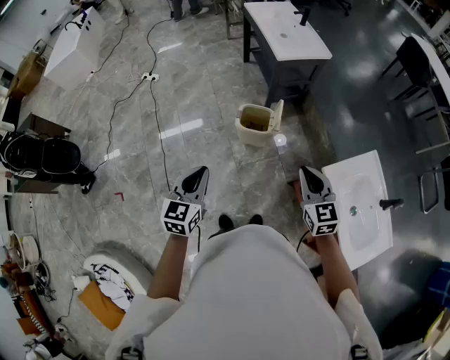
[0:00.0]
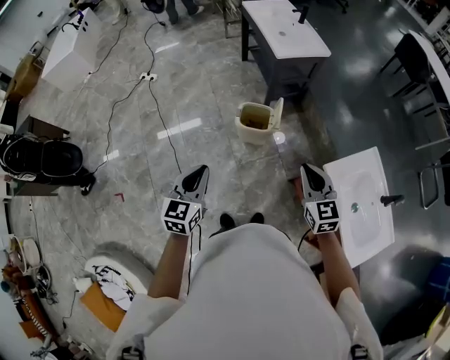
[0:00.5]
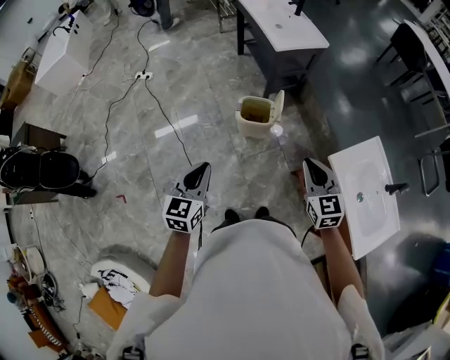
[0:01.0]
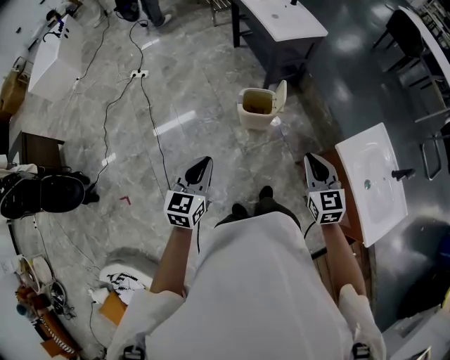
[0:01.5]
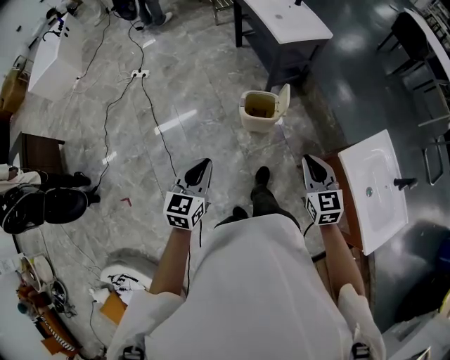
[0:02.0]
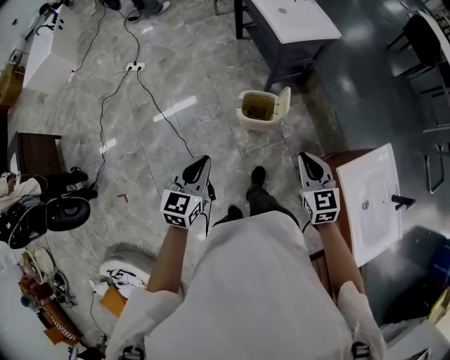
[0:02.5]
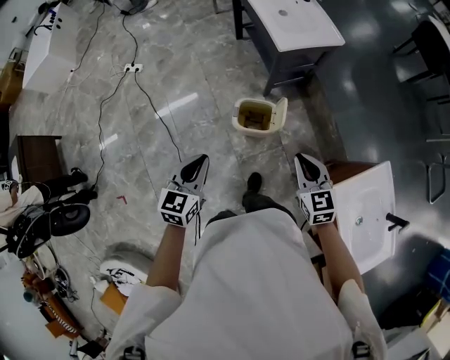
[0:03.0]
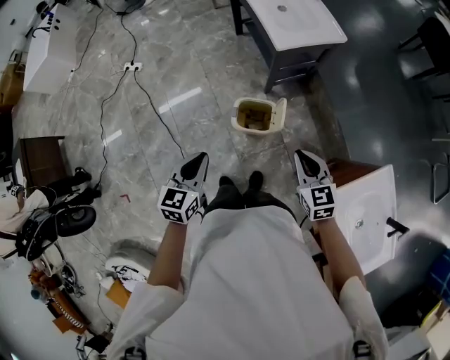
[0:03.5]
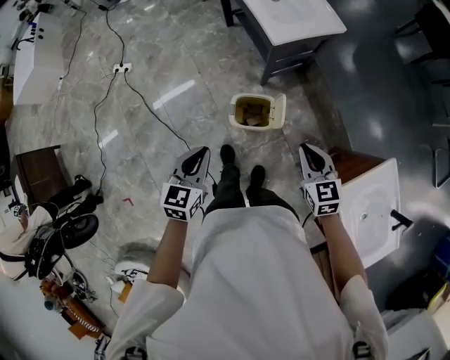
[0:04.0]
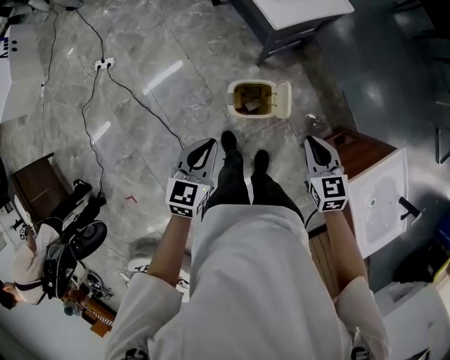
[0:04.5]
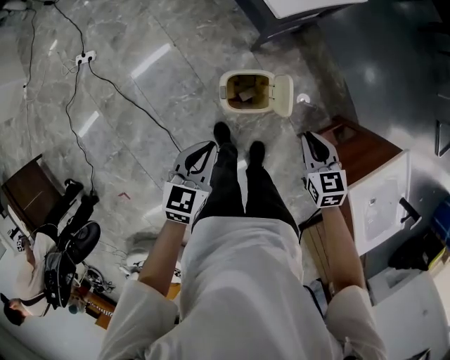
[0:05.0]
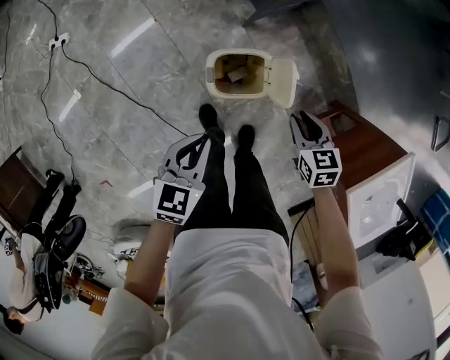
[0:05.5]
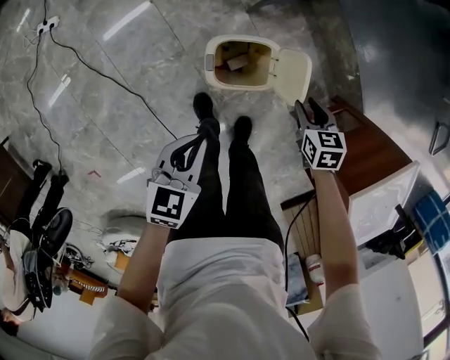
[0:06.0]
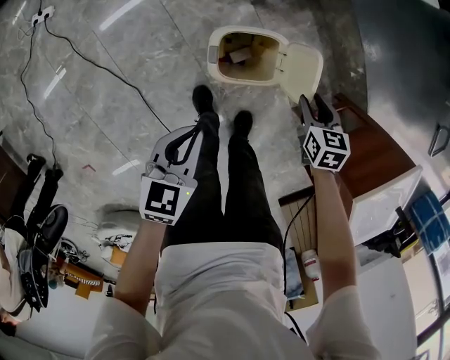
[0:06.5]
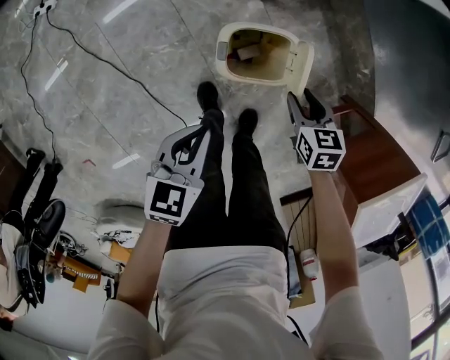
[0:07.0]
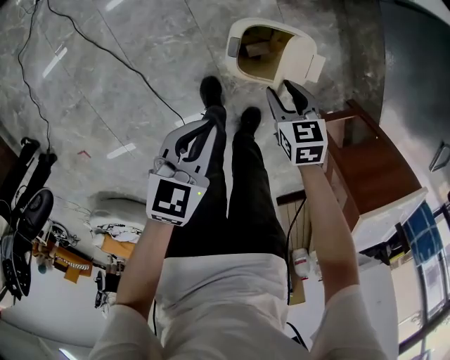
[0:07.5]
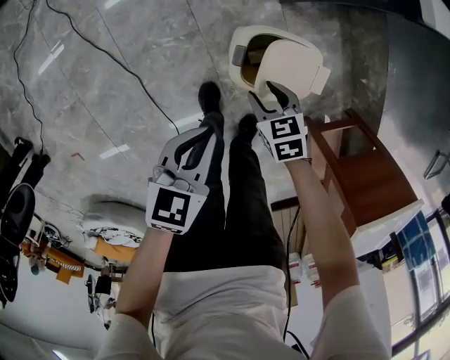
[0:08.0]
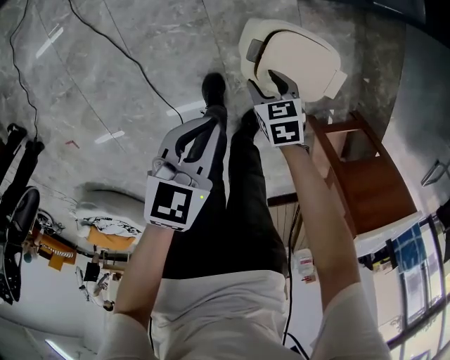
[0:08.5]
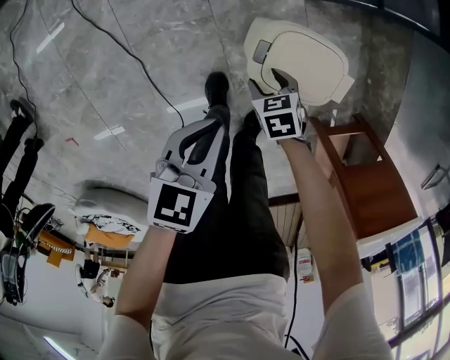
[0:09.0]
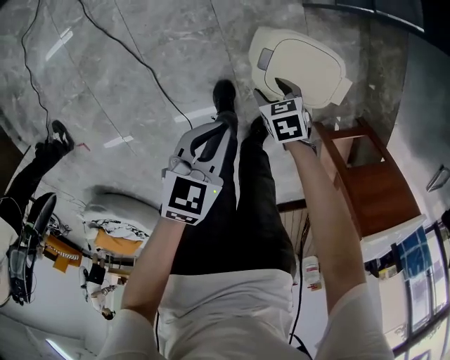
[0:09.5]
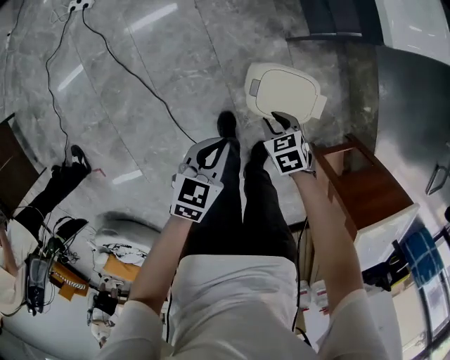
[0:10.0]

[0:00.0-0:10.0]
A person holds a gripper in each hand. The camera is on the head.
0:00.0 to 0:02.0: The grippers both shift to the left by about 5 cm.
0:02.0 to 0:04.0: Both grippers move forward, approximately 25 cm.
0:04.0 to 0:06.0: The two grippers go roughly 30 cm downward. The left gripper swivels about 20 degrees, while the right gripper rotates approximately 30 degrees, and opens its fingers.
0:06.0 to 0:08.0: The left gripper heads downward, covering about 10 cm; the right gripper moves to the left and downward, some 25 cm, and swivels some 20 degrees.
0:08.0 to 0:10.0: The right gripper goes roughly 5 cm upward.

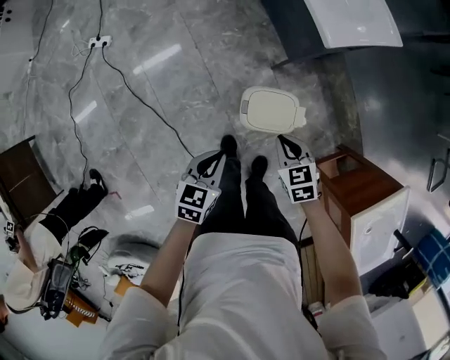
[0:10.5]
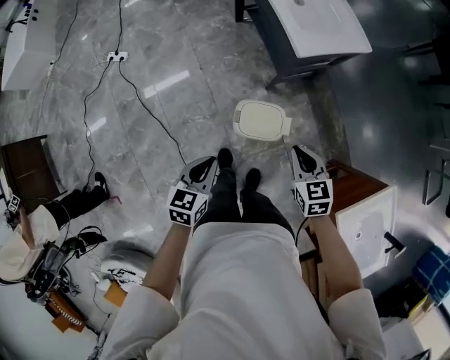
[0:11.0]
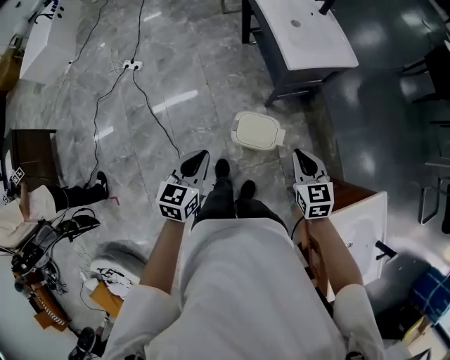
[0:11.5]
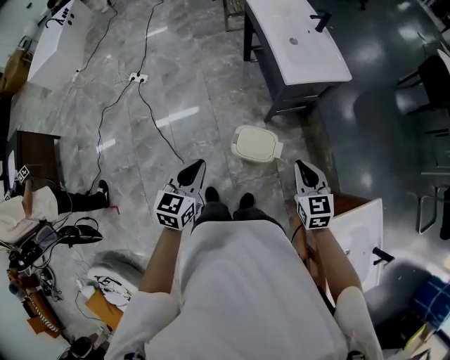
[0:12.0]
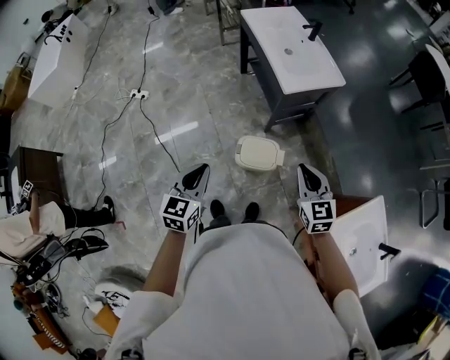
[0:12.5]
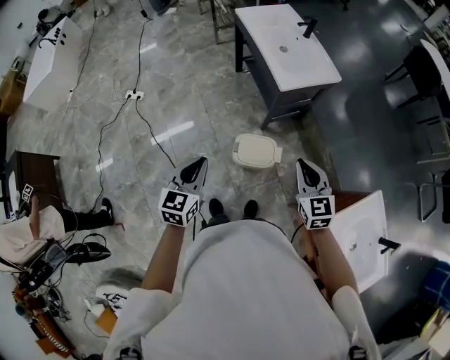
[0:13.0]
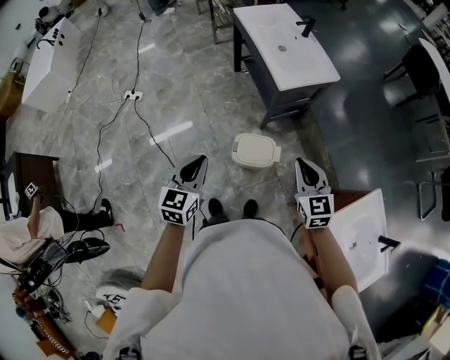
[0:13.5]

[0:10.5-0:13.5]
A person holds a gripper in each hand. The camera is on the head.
0:10.5 to 0:12.0: The right gripper shifts roughly 30 cm upward and to the right, and rotates approximately 20 degrees; the left gripper travels upward by roughly 20 cm, and rotates some 20 degrees.
0:12.0 to 0:13.5: The right gripper changes place by about 5 cm.

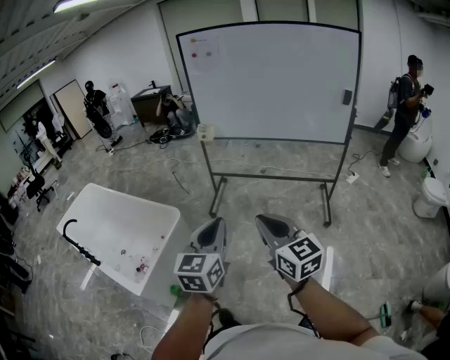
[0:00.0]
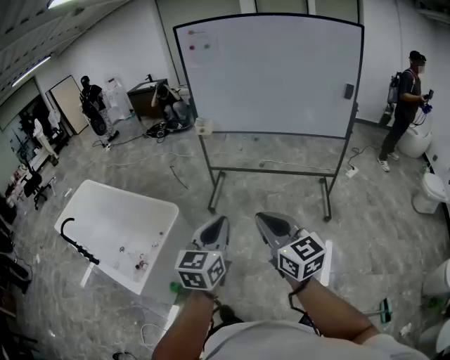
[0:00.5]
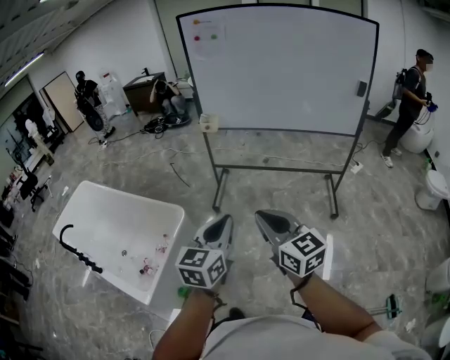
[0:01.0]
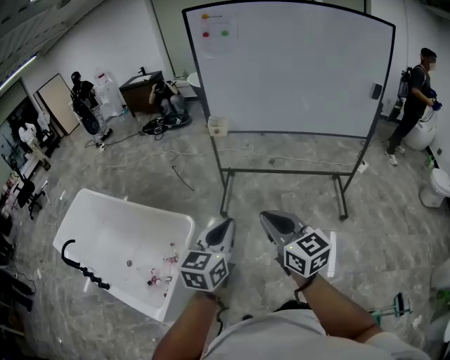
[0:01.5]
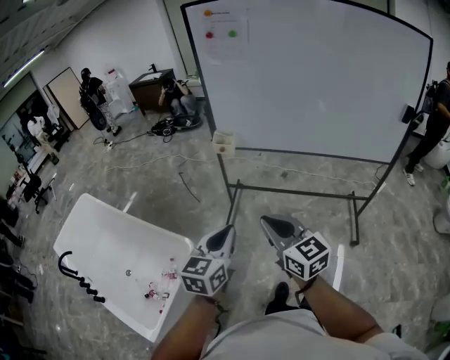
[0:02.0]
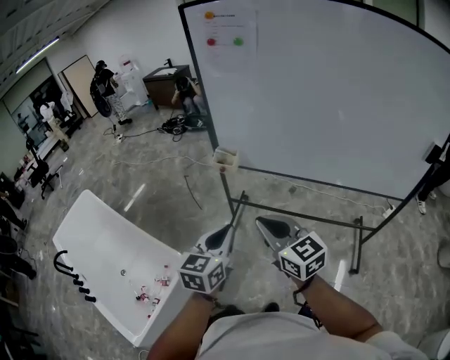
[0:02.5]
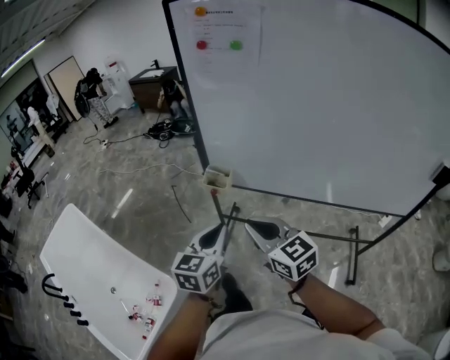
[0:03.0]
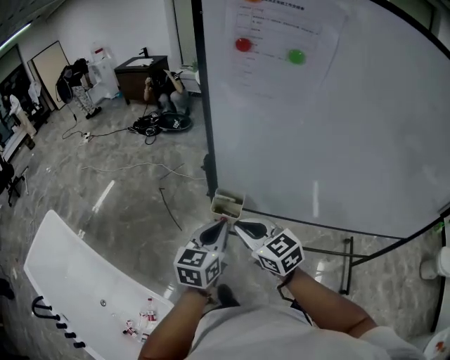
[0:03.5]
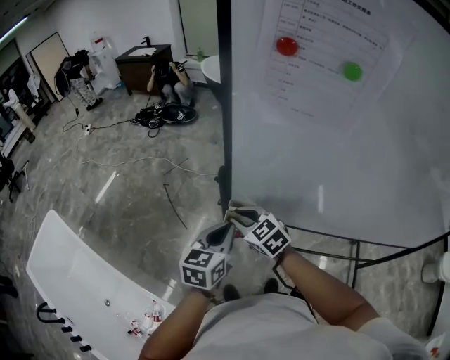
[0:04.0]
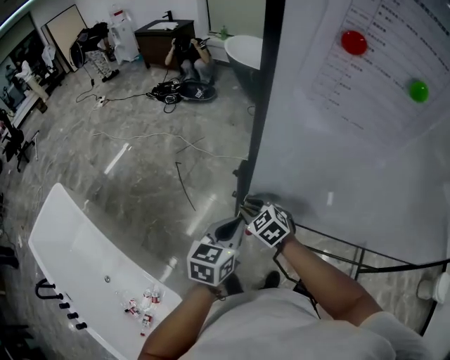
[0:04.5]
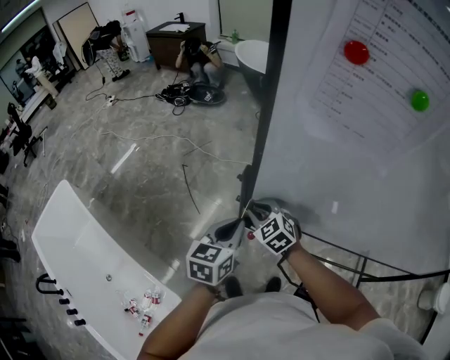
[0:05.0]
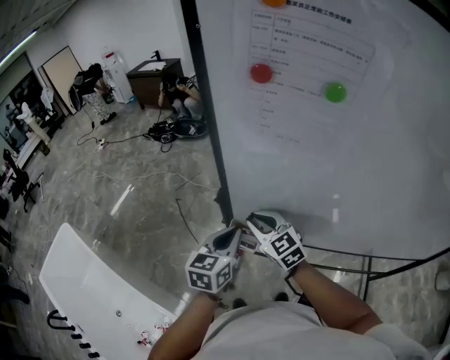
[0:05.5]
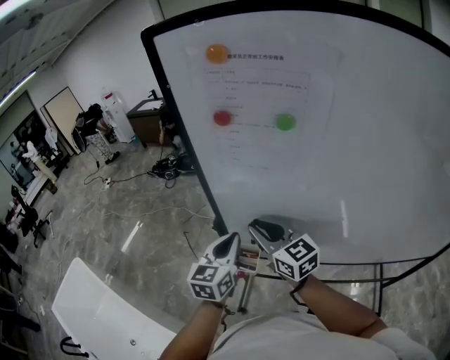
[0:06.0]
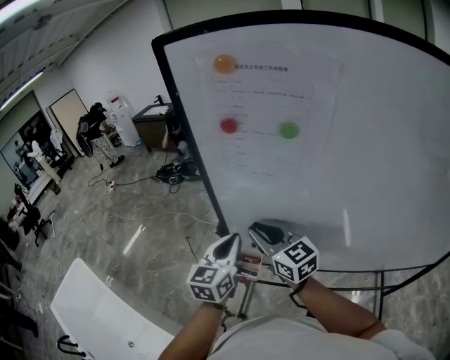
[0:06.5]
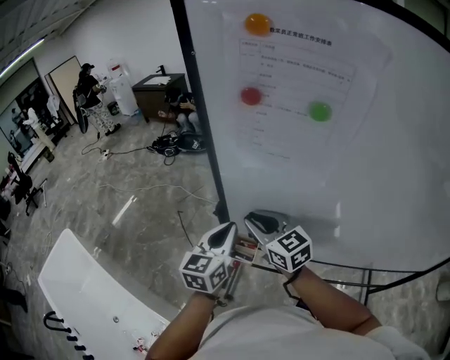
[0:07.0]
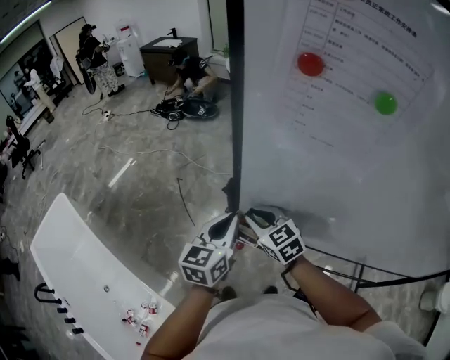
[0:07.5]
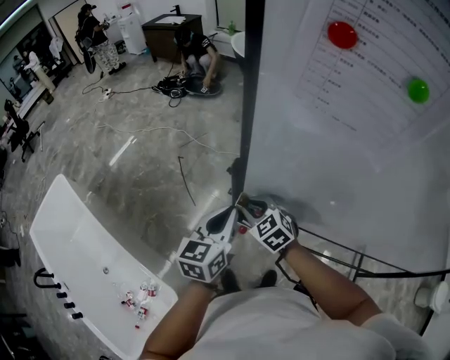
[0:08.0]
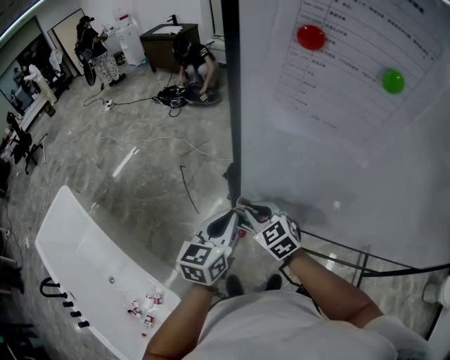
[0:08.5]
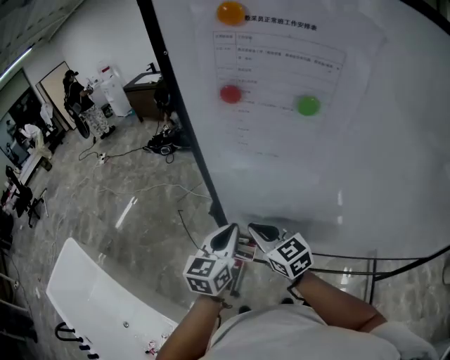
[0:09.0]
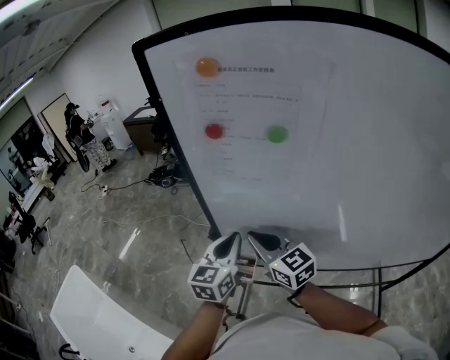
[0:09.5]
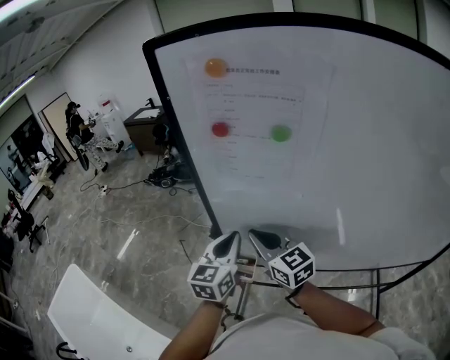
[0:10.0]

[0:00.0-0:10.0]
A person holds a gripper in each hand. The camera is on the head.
0:00.0 to 0:02.0: The two grippers travel together, forward, approximately 40 cm.
0:02.0 to 0:04.0: The pair of grippers is taken forward, roughly 60 cm. The right gripper turns by approximately 30 degrees.
0:04.0 to 0:06.0: The right gripper travels upward and to the right by approximately 20 cm, and changes its angle by roughly 30 degrees; the left gripper goes approximately 10 cm upward, to the right and forward.
0:06.0 to 0:08.0: The left gripper is displaced downward and to the left by about 10 cm, while the right gripper heads downward, covering roughly 20 cm, and angles its fingers downward, by approximately 40 degrees.
0:08.0 to 0:10.0: The right gripper moves upward and to the right, approximately 25 cm, and tilts its fingers about 40 degrees upward; the left gripper goes some 15 cm upward and to the right.

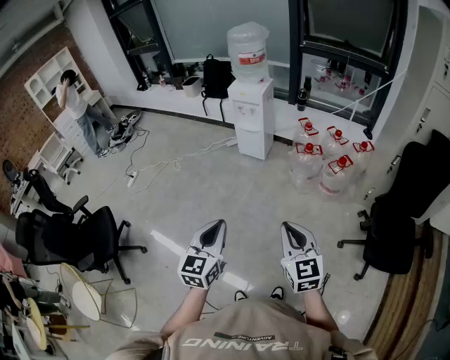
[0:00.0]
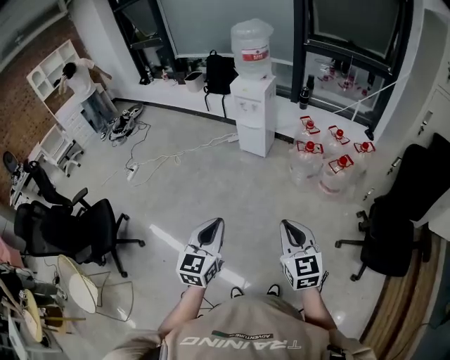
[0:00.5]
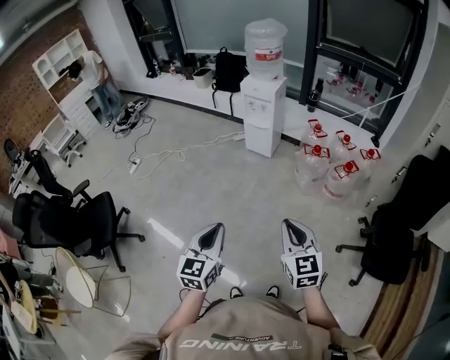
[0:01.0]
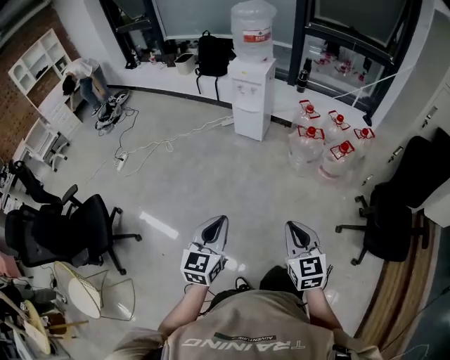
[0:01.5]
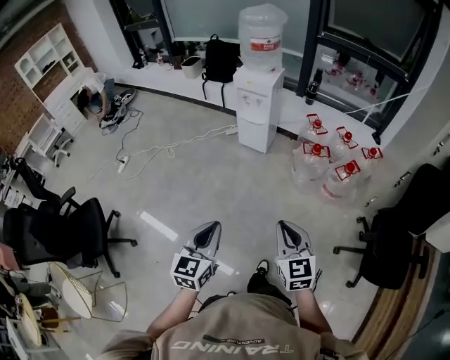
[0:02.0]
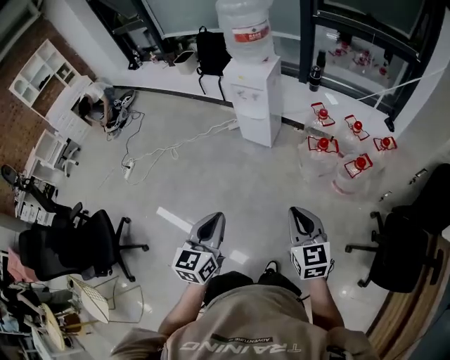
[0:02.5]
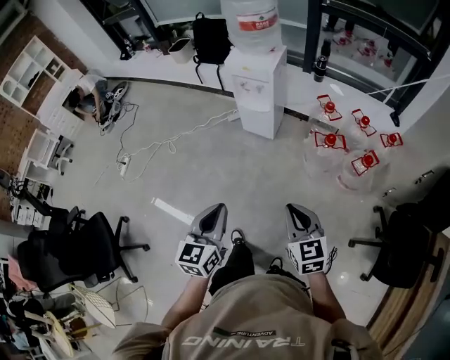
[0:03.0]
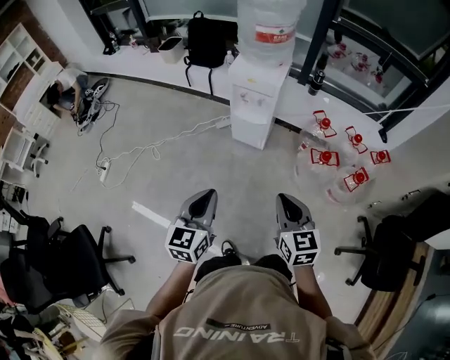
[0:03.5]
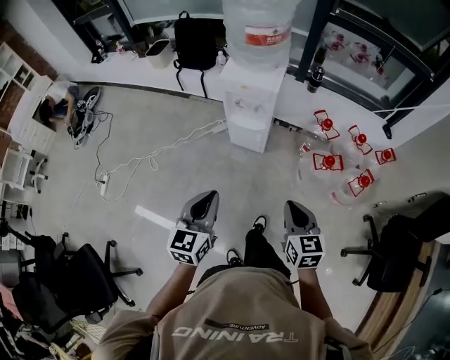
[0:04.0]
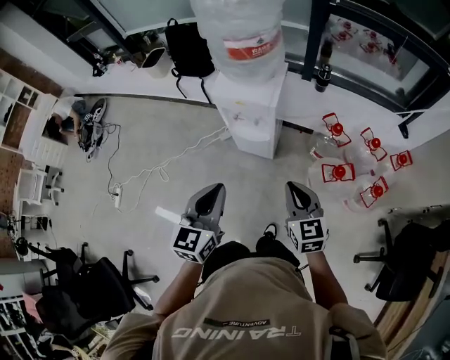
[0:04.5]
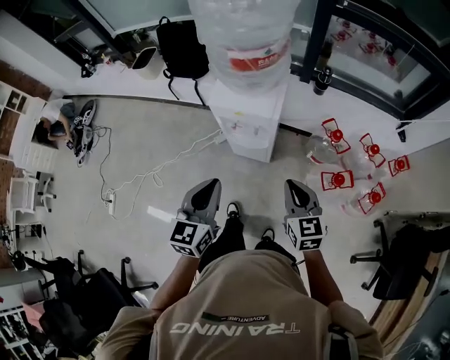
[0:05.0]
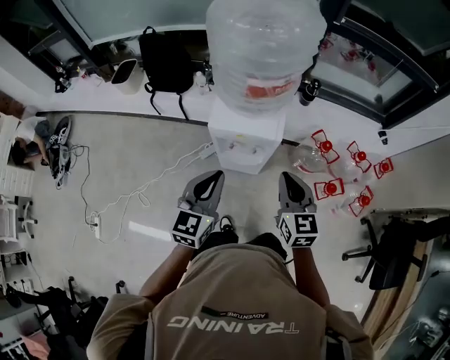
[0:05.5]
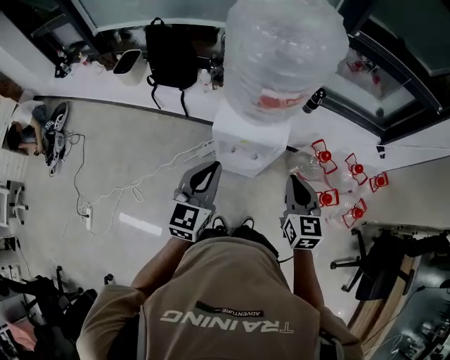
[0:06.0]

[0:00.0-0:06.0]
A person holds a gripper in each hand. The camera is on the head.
0:00.0 to 0:02.0: Both grippers move forward, roughly 10 cm.
0:02.0 to 0:04.0: Both grippers are carried forward, about 40 cm.
0:04.0 to 0:06.0: Both grippers move forward, about 40 cm.
